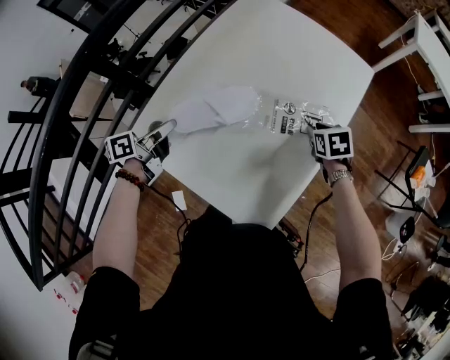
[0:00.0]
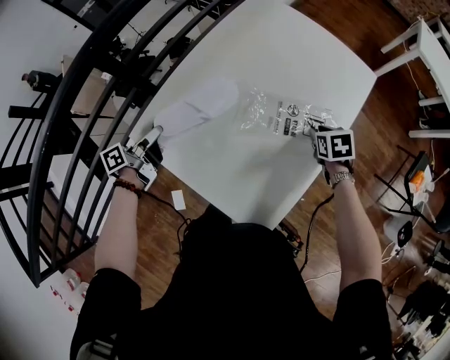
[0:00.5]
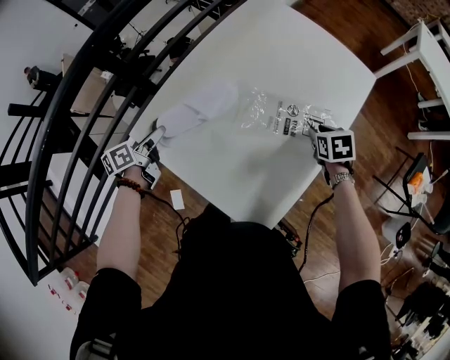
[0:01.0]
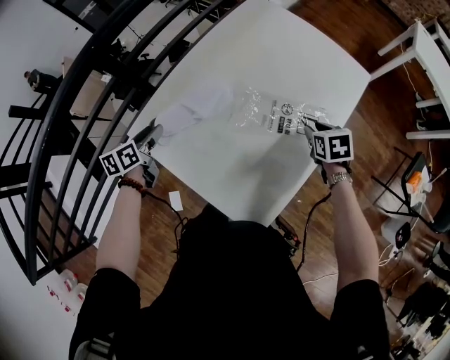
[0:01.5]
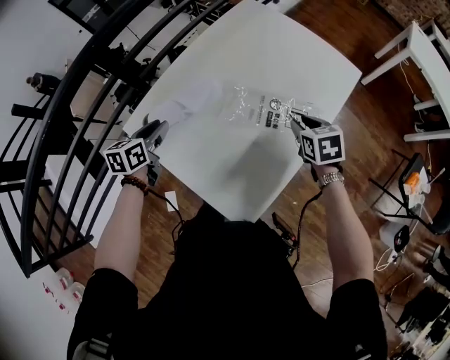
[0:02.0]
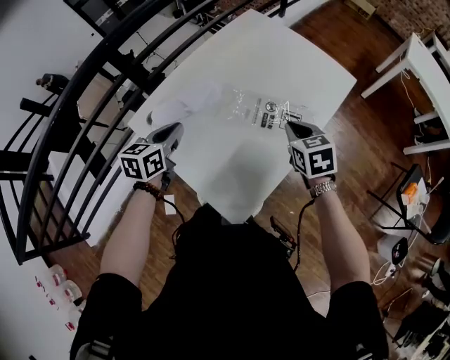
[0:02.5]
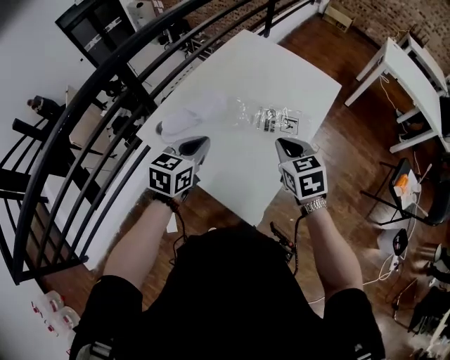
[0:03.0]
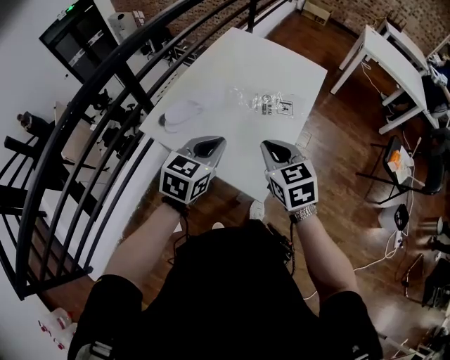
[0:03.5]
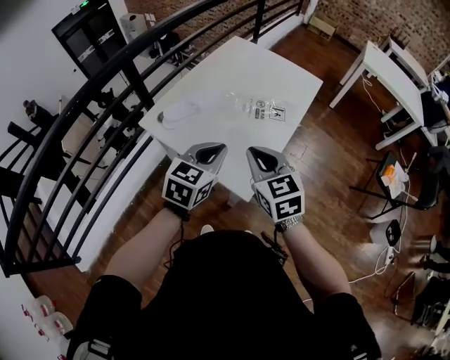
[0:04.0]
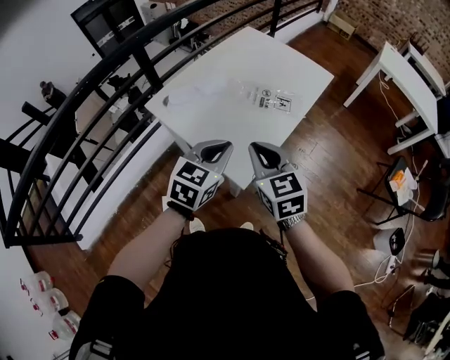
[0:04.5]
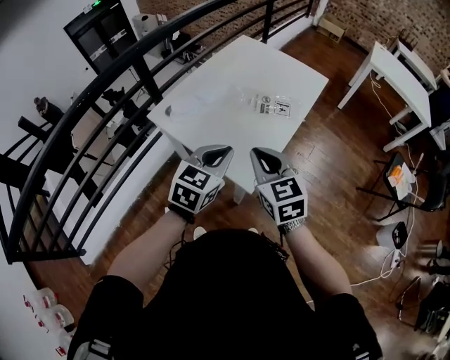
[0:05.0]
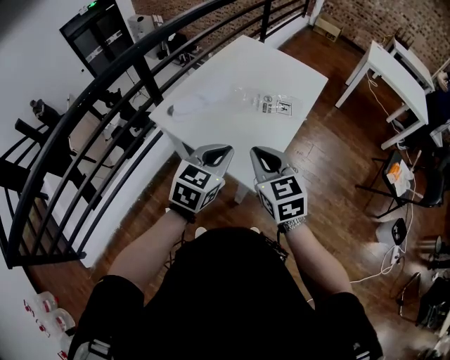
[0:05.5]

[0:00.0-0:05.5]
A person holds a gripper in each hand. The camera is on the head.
0:00.0 to 0:02.0: The left gripper reaches some 10 cm to the left, then returns, and rotates approximately 50 degrees; the right gripper moves upward, approximately 5 cm.
0:02.0 to 0:03.5: The left gripper moves to the right, backward and upward, approximately 25 cm, turns by approximately 40 degrees, and closes up. Meanwhile the right gripper shifts approximately 25 cm backward, upward and to the left, turns by about 20 degrees, and closes up.
0:03.5 to 0:05.5: Both grippers travel together backward, roughly 10 cm.

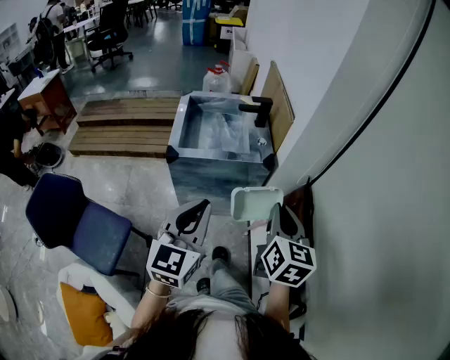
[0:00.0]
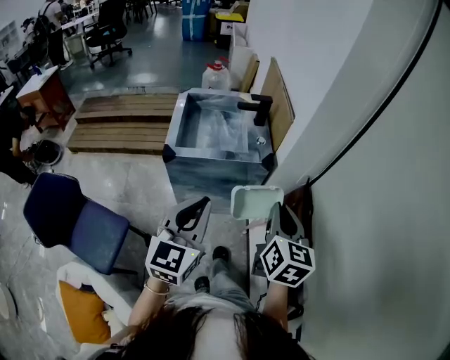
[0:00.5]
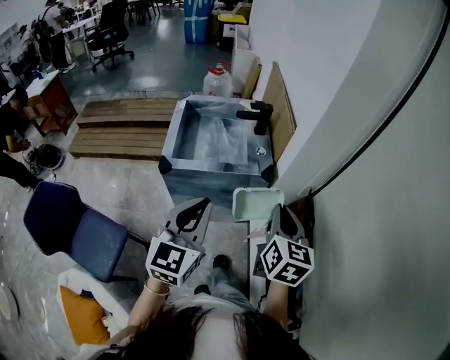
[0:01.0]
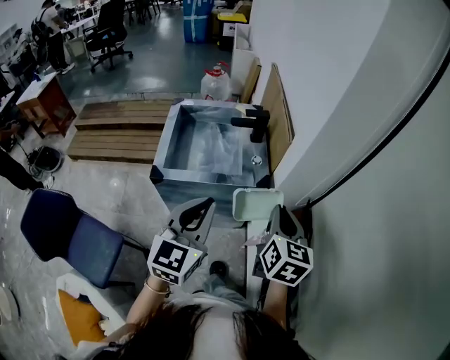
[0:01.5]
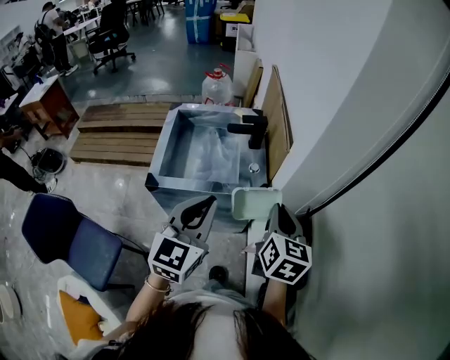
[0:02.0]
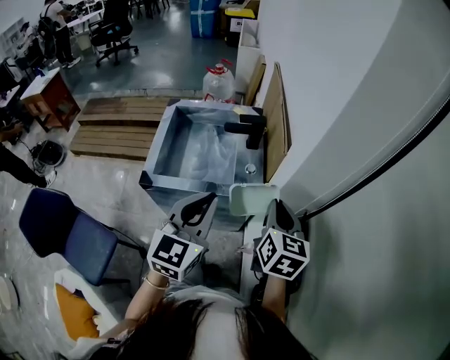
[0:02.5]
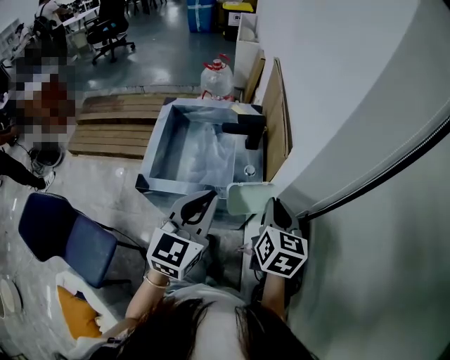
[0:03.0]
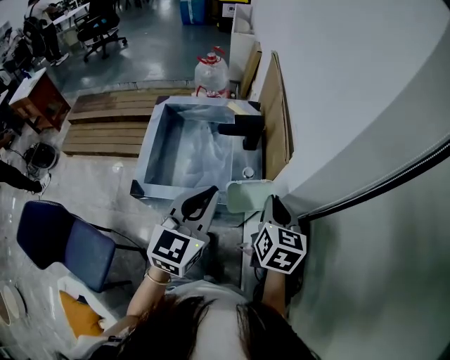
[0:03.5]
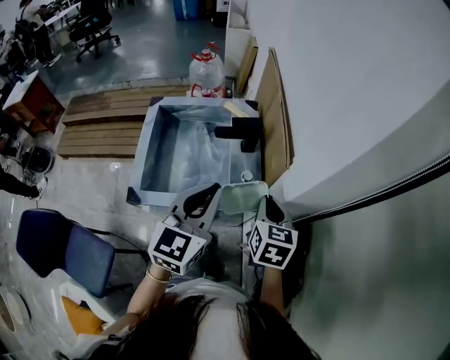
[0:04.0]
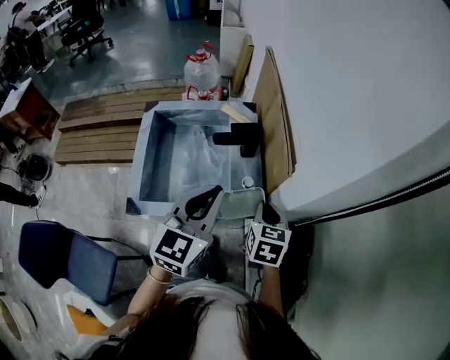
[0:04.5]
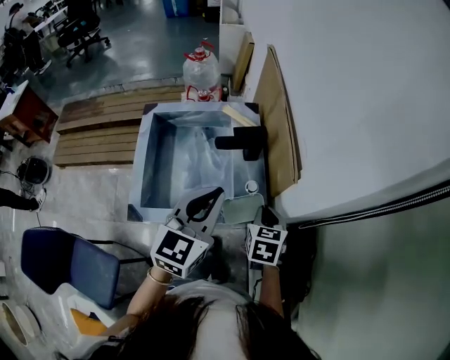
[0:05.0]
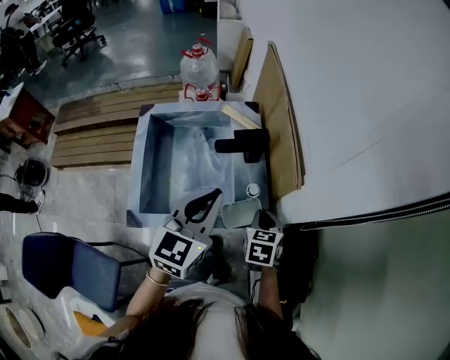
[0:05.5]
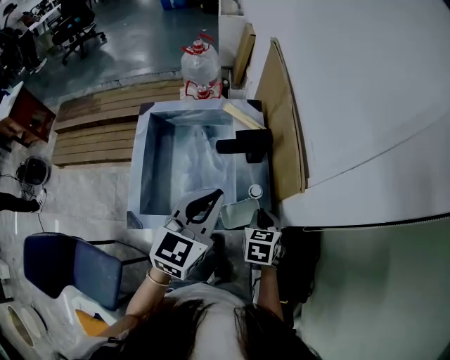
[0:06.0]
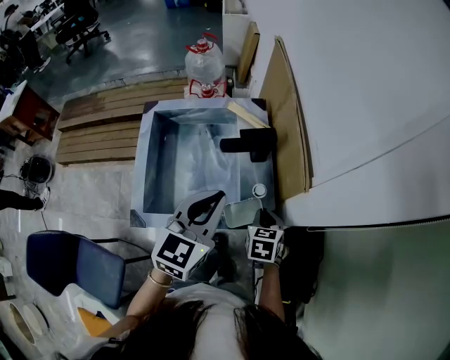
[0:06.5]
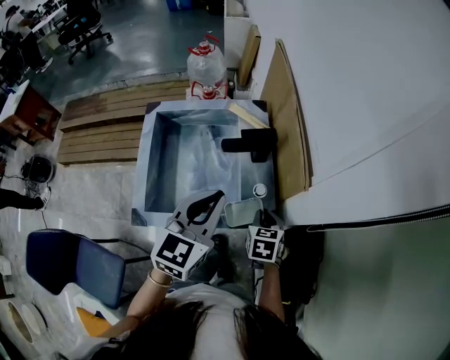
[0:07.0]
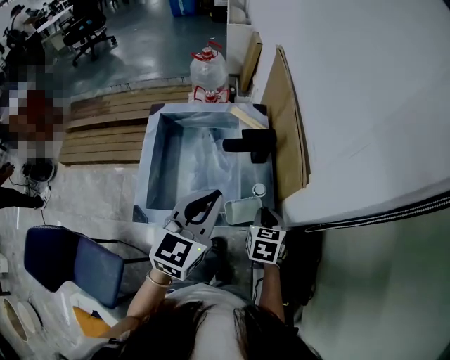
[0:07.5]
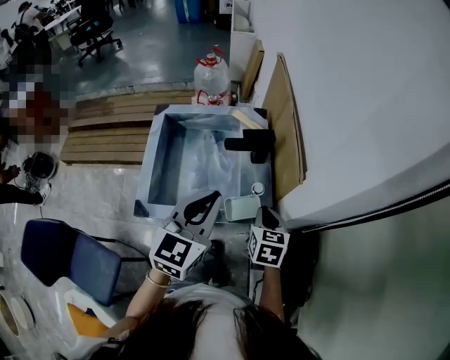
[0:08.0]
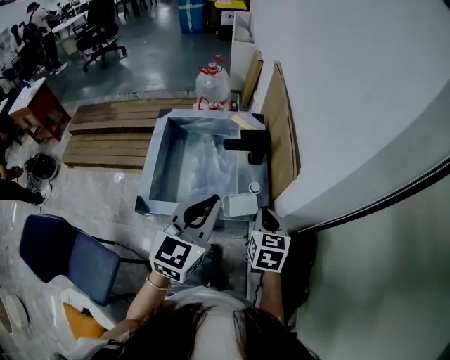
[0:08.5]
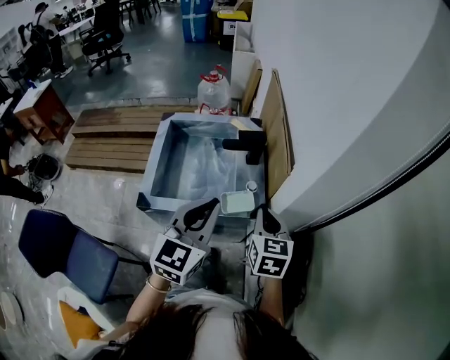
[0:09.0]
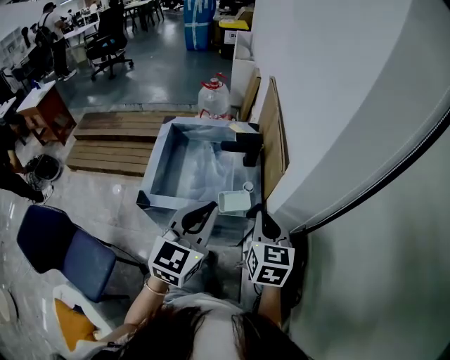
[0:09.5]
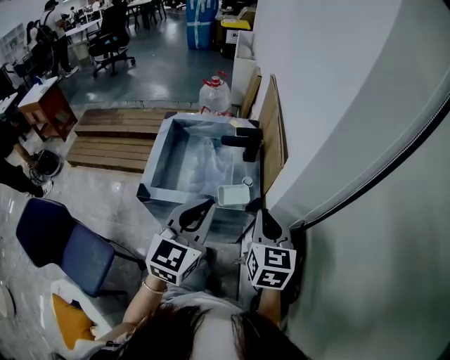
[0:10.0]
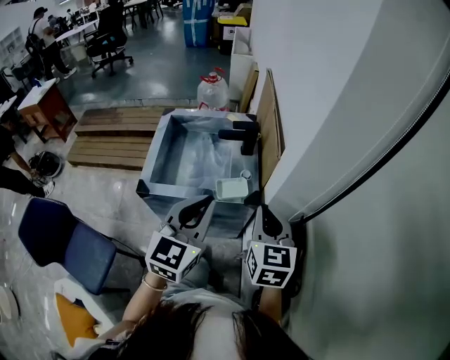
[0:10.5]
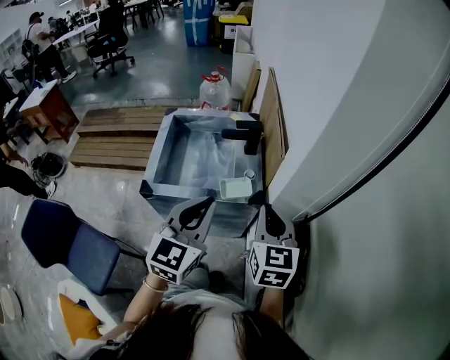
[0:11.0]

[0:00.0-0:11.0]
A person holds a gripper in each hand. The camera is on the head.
0:00.0 to 0:02.0: The two grippers go about 20 cm forward.
0:02.0 to 0:03.5: The two grippers go some 10 cm forward.
0:03.5 to 0:05.5: The left gripper shifts roughly 10 cm forward. The right gripper heads downward and forward, covering approximately 20 cm, and changes its angle by about 20 degrees.
0:05.5 to 0:07.5: The grippers make only small movements.
0:07.5 to 0:09.0: The left gripper goes approximately 10 cm backward. The right gripper heads upward and backward, covering some 15 cm.
0:09.0 to 0:11.0: The right gripper heads backward and upward, covering about 10 cm. Meanwhile the left gripper moves backward, approximately 5 cm.

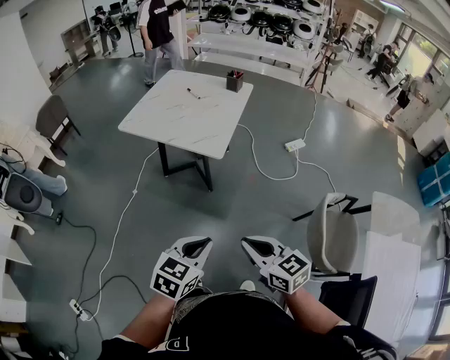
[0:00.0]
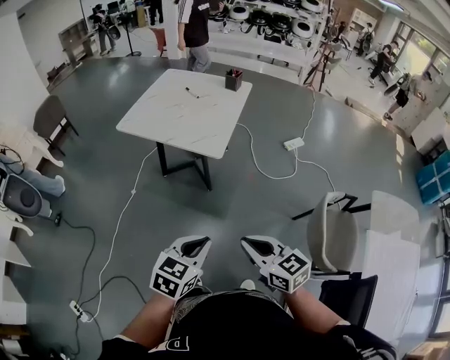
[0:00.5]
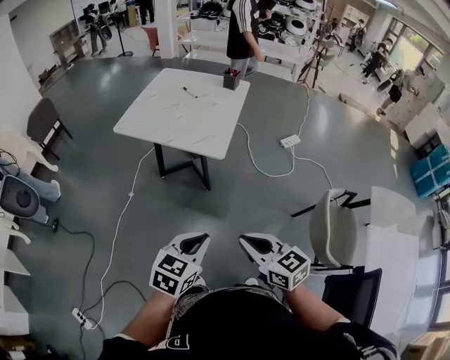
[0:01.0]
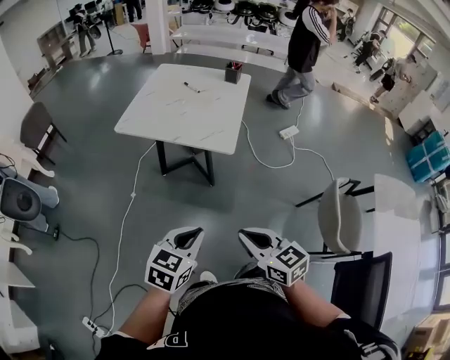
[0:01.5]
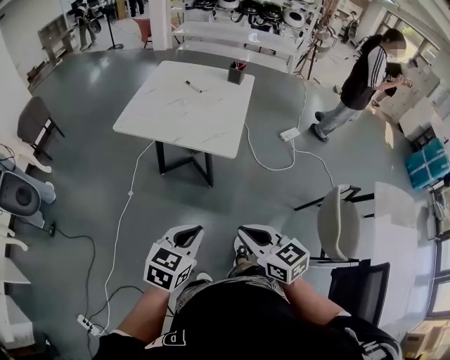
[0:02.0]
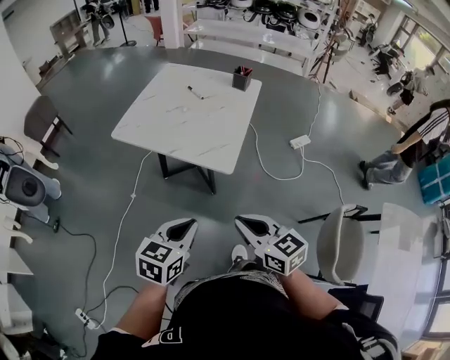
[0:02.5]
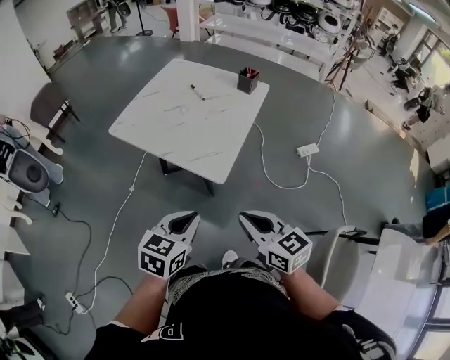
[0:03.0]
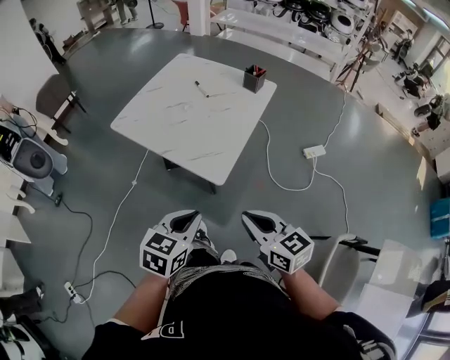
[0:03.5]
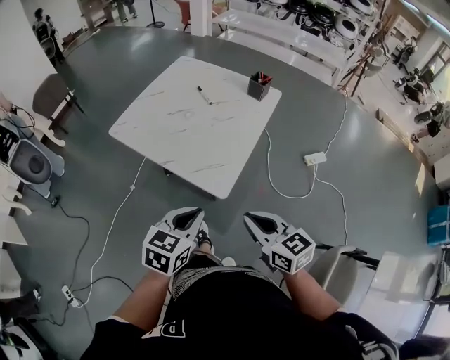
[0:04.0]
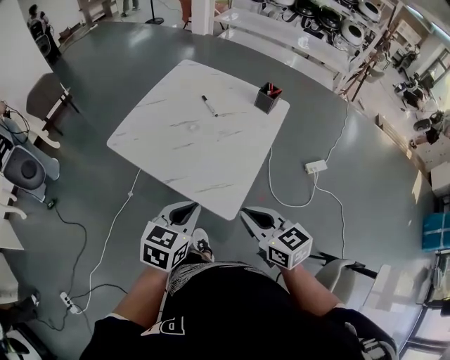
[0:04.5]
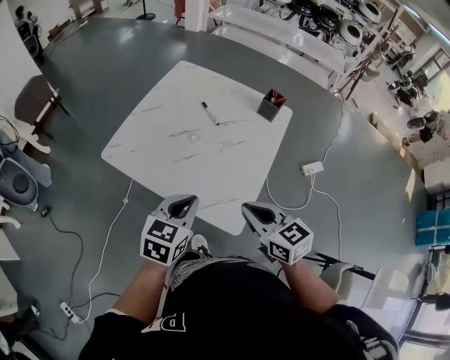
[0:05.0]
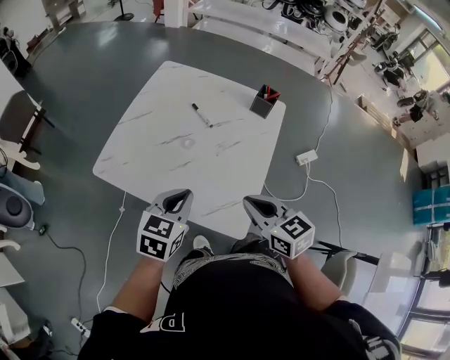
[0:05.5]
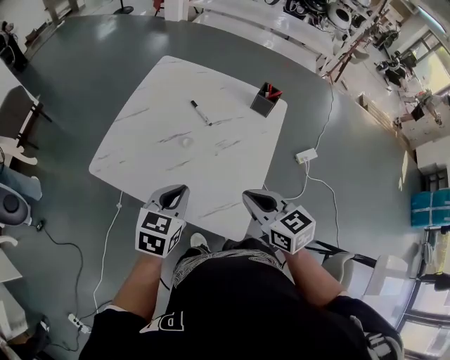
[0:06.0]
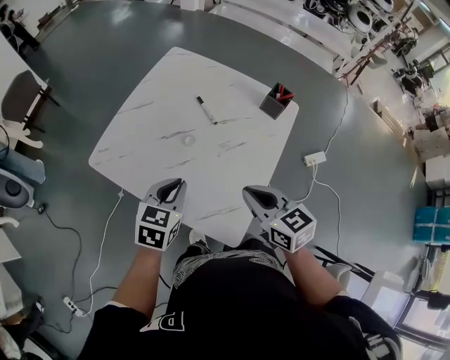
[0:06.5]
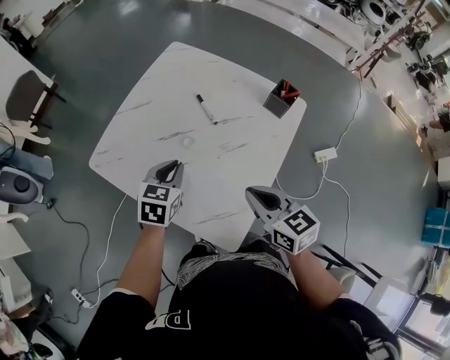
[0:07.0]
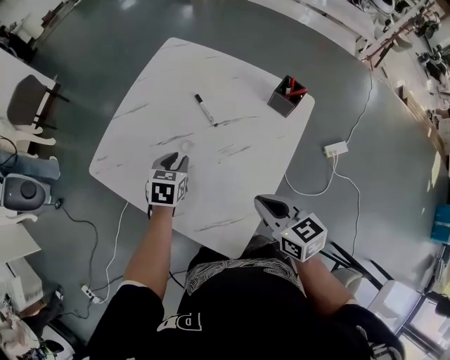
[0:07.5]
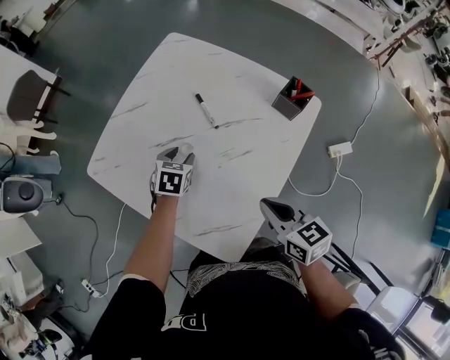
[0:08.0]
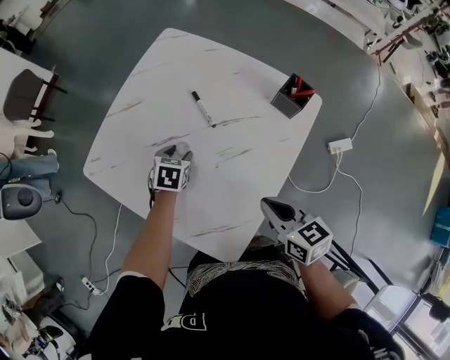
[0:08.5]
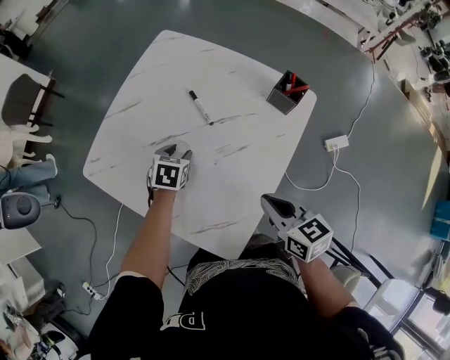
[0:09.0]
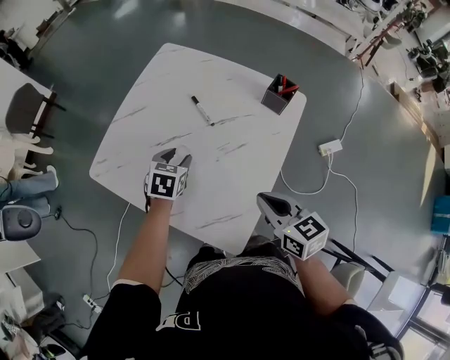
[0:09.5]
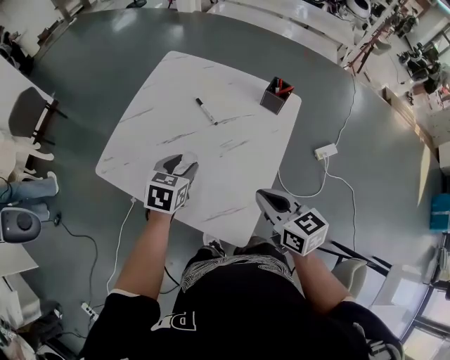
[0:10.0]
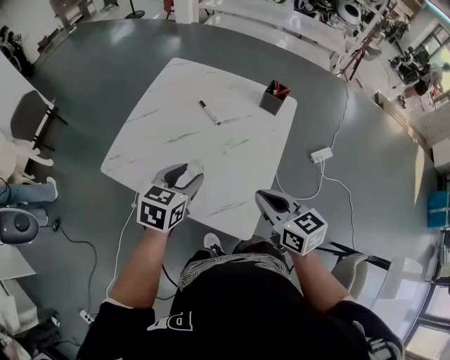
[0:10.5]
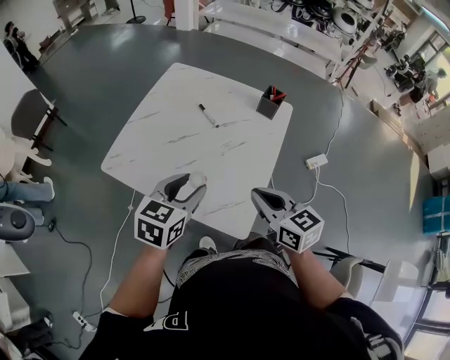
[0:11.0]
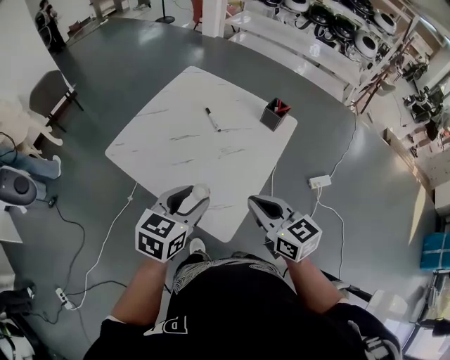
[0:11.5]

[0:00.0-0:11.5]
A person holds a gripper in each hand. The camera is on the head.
0:00.0 to 0:02.0: Both grippers travel together to the left and forward, some 15 cm.
0:02.0 to 0:04.0: The grippers both shift forward and to the right by about 30 cm.
0:04.0 to 0:06.0: Both grippers travel together forward, some 30 cm.
0:06.0 to 0:07.5: The right gripper heads to the right, forward and downward, covering roughly 15 cm. The left gripper shifts approximately 25 cm forward and downward, rotates about 20 degrees, and opens.
0:07.5 to 0:09.5: The left gripper moves roughly 10 cm downward and comes back, and opens up.
0:09.5 to 0:11.5: The right gripper travels backward and upward by some 15 cm, while the left gripper shifts about 30 cm backward and upward, and rotates some 20 degrees.
